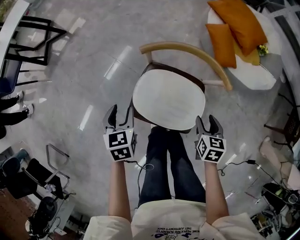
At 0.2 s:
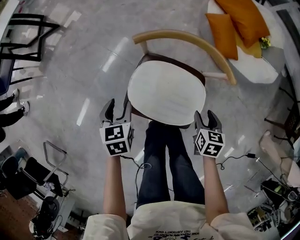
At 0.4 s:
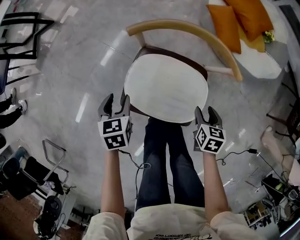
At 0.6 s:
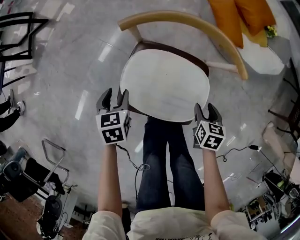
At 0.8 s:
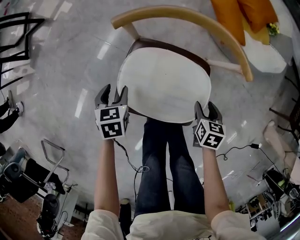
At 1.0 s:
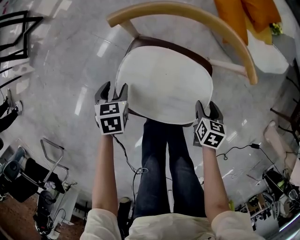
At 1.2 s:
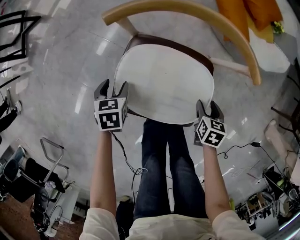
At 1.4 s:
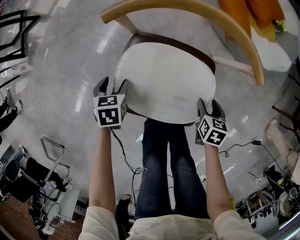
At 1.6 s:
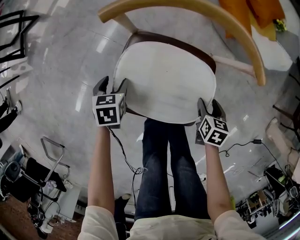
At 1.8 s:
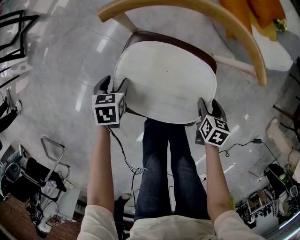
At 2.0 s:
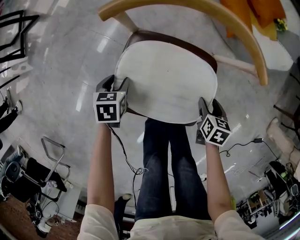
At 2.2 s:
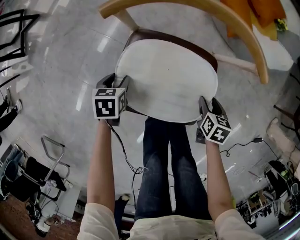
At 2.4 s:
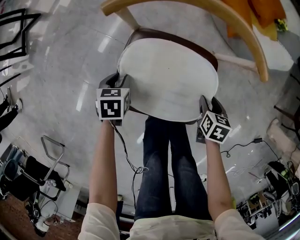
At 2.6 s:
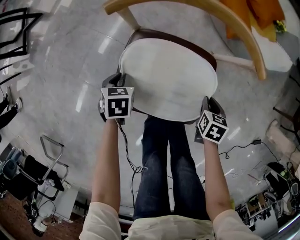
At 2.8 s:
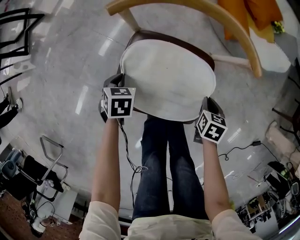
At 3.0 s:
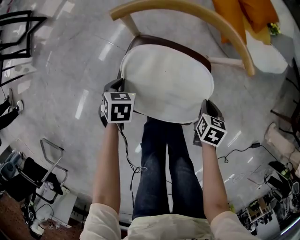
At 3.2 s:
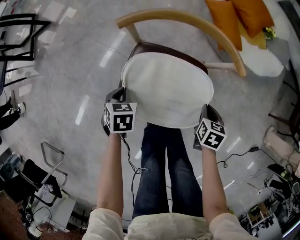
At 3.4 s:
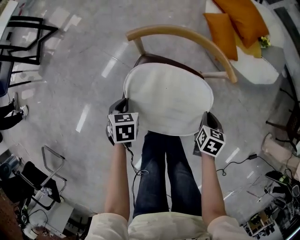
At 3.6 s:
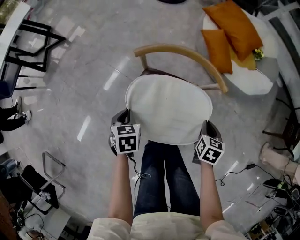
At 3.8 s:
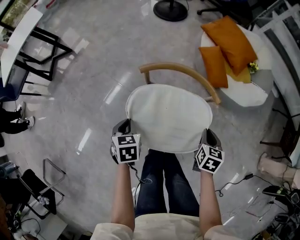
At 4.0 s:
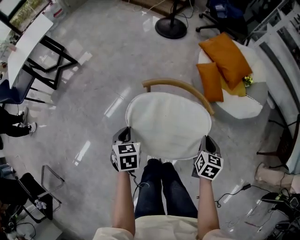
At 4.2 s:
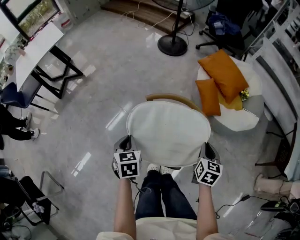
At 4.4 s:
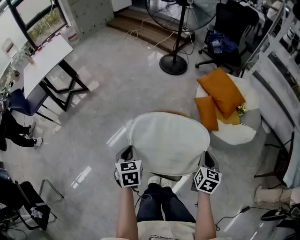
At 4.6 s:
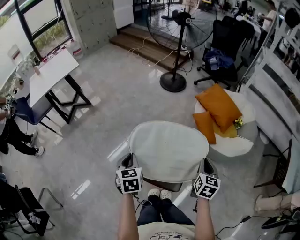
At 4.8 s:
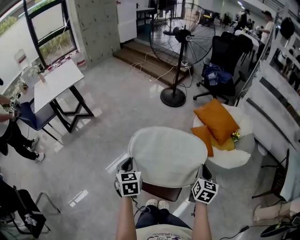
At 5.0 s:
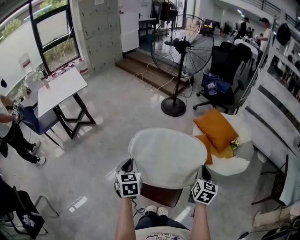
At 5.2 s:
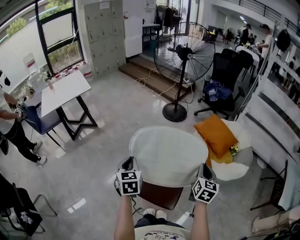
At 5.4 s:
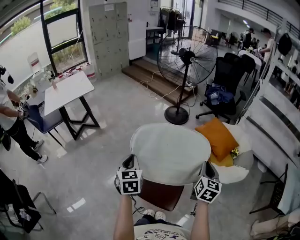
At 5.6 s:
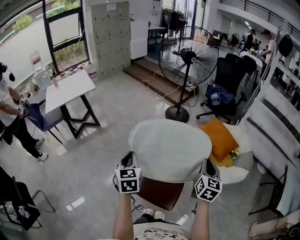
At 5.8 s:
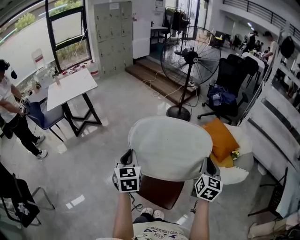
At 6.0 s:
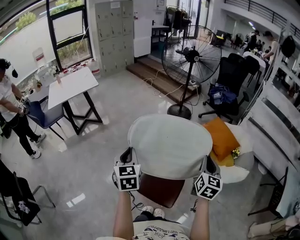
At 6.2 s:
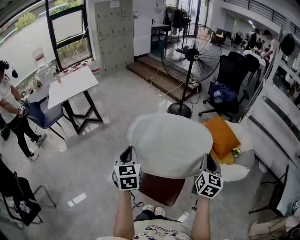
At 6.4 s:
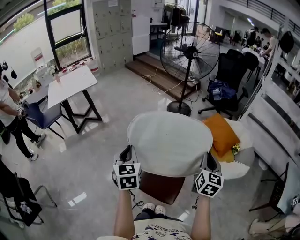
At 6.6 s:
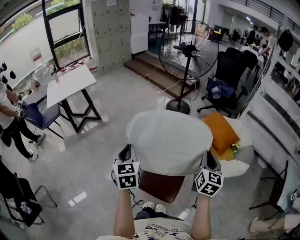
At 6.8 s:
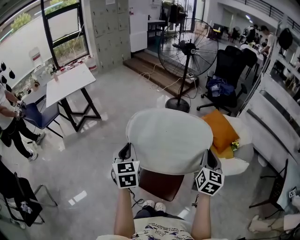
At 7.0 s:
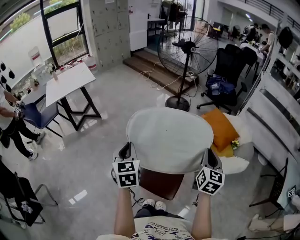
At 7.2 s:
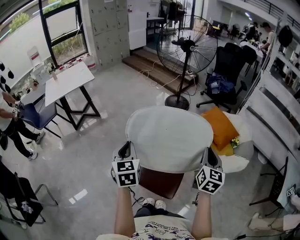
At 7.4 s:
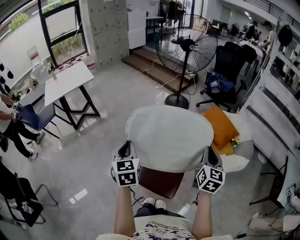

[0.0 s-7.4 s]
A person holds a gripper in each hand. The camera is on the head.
0.0 to 1.4 s: The grippers both shift downward by about 25 cm.
1.4 to 3.0 s: The right gripper closes its fingers. The left gripper closes up.
3.0 to 4.4 s: The two grippers go some 50 cm upward. The right gripper rotates about 30 degrees. Meanwhile the left gripper swivels approximately 30 degrees.
4.4 to 6.0 s: The grippers both shift upward by approximately 25 cm. The left gripper rotates approximately 30 degrees. Meanwhile the right gripper swivels approximately 30 degrees.
6.0 to 7.4 s: The grippers stay close to where they were, moving slightly.

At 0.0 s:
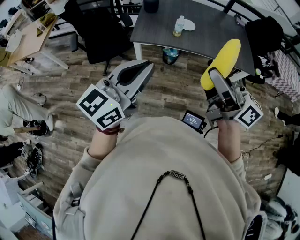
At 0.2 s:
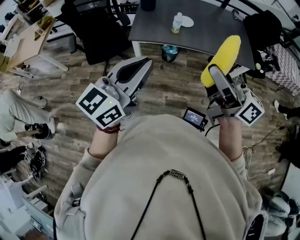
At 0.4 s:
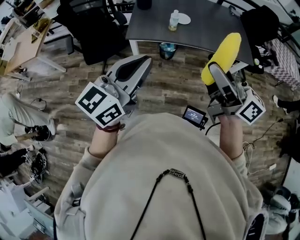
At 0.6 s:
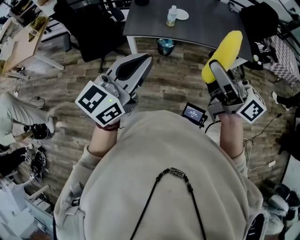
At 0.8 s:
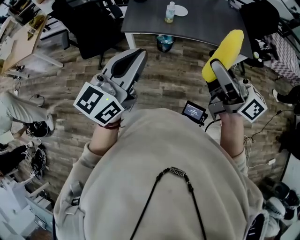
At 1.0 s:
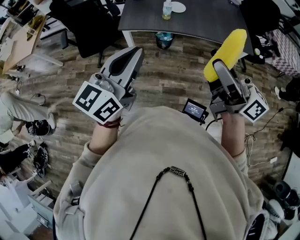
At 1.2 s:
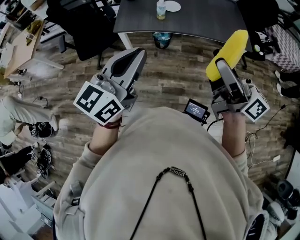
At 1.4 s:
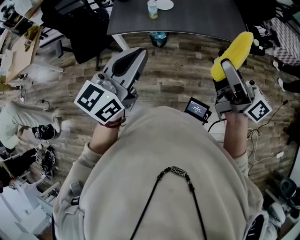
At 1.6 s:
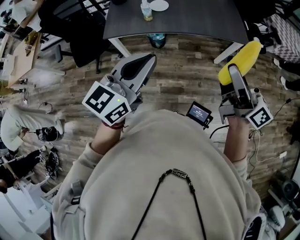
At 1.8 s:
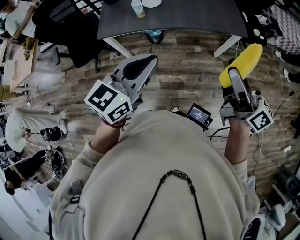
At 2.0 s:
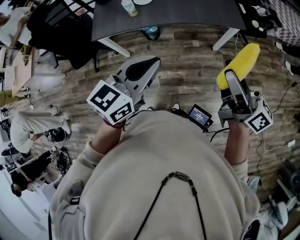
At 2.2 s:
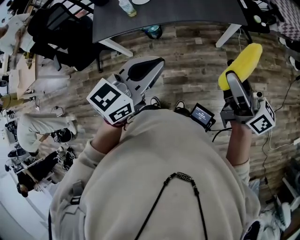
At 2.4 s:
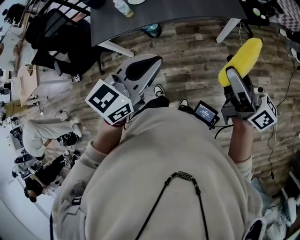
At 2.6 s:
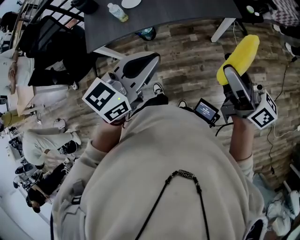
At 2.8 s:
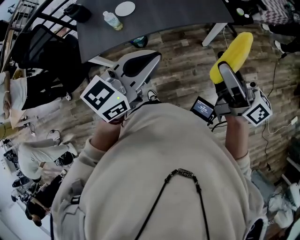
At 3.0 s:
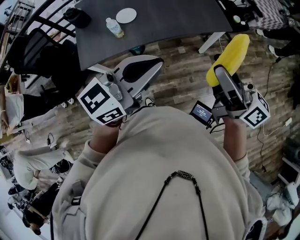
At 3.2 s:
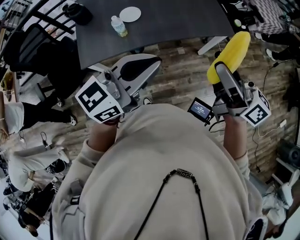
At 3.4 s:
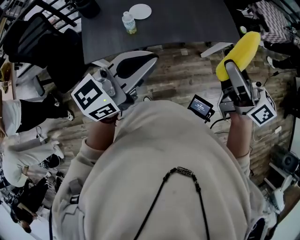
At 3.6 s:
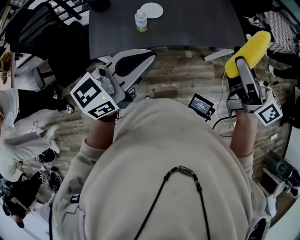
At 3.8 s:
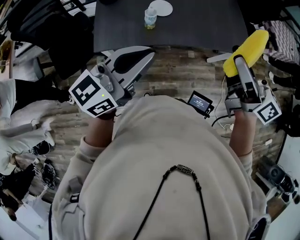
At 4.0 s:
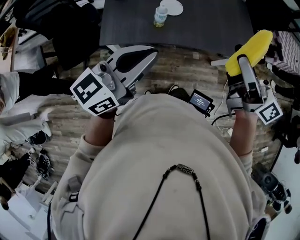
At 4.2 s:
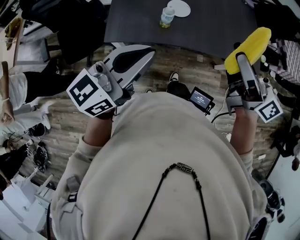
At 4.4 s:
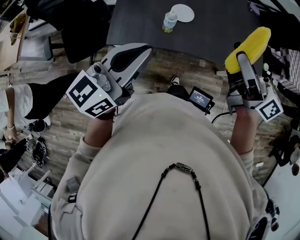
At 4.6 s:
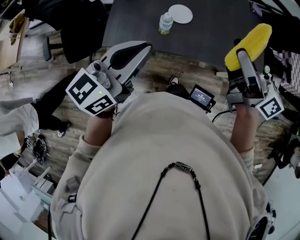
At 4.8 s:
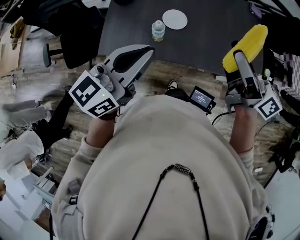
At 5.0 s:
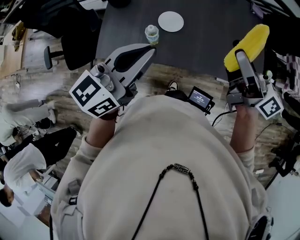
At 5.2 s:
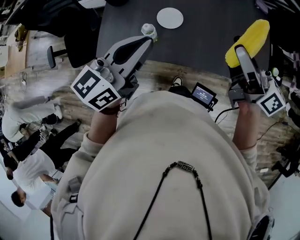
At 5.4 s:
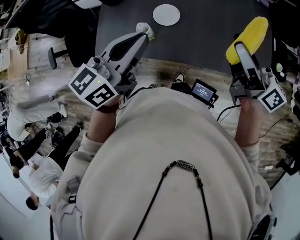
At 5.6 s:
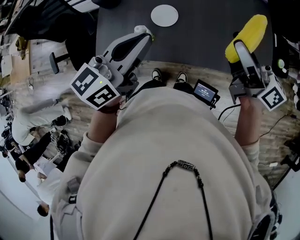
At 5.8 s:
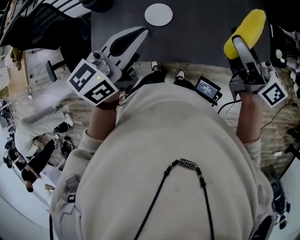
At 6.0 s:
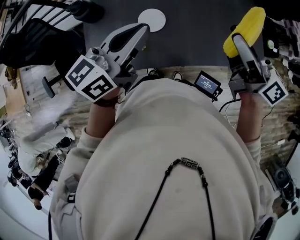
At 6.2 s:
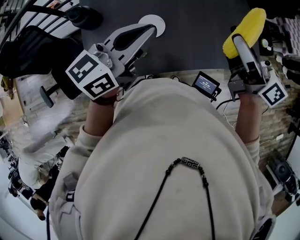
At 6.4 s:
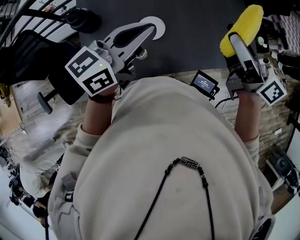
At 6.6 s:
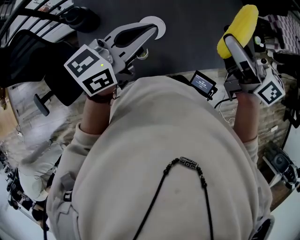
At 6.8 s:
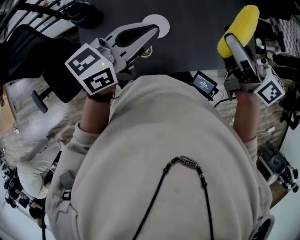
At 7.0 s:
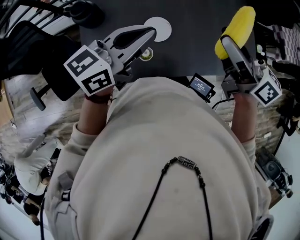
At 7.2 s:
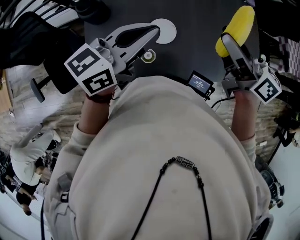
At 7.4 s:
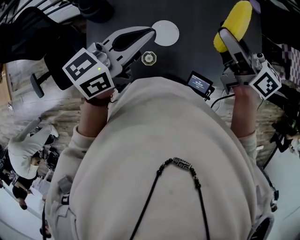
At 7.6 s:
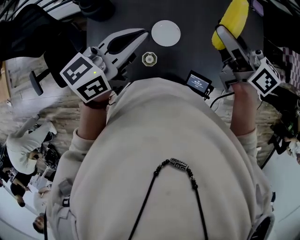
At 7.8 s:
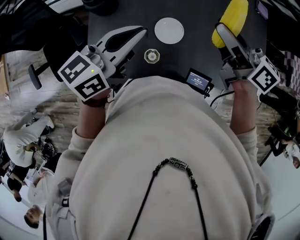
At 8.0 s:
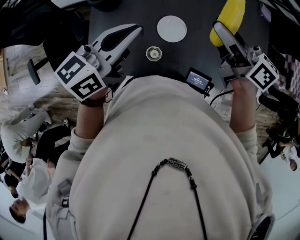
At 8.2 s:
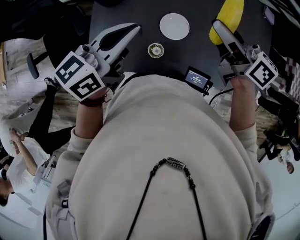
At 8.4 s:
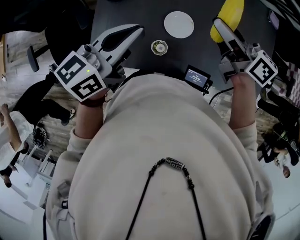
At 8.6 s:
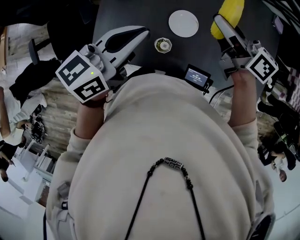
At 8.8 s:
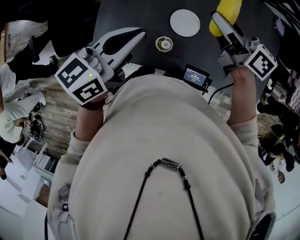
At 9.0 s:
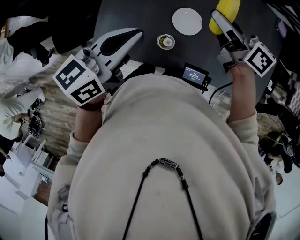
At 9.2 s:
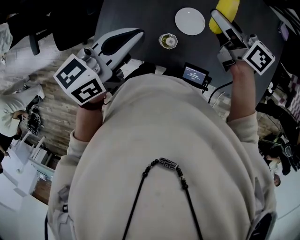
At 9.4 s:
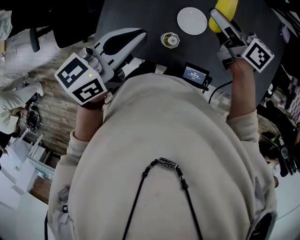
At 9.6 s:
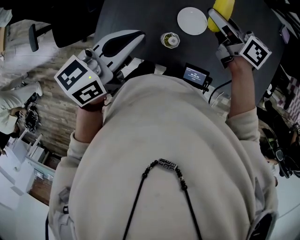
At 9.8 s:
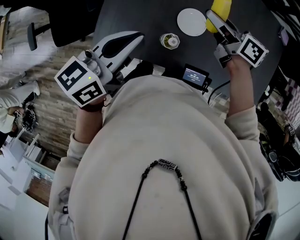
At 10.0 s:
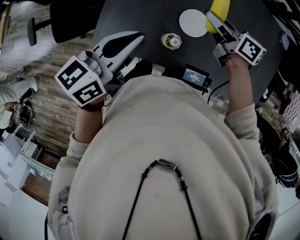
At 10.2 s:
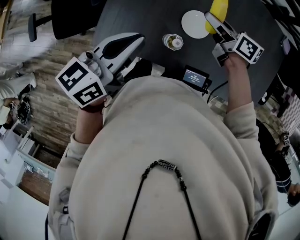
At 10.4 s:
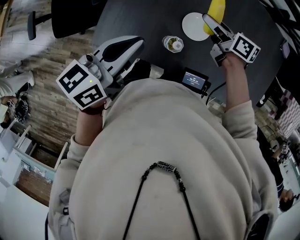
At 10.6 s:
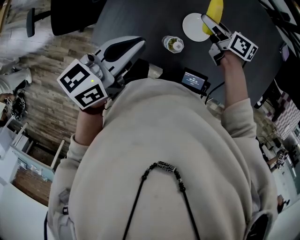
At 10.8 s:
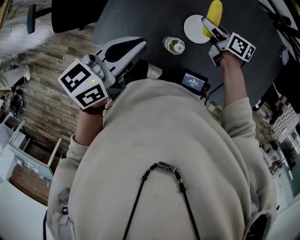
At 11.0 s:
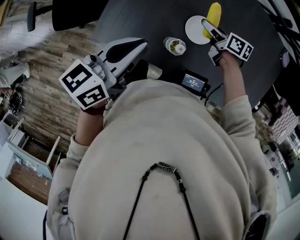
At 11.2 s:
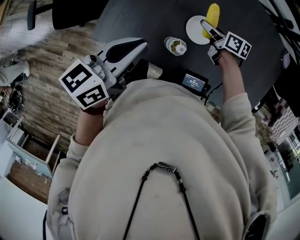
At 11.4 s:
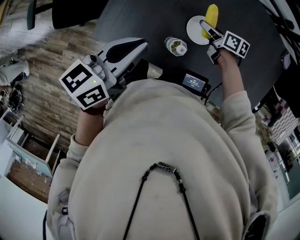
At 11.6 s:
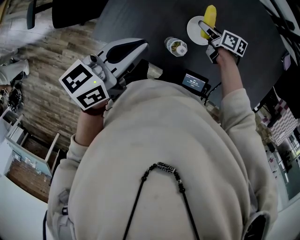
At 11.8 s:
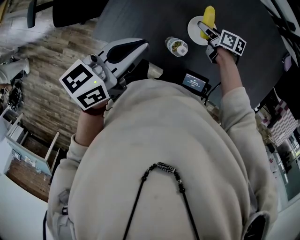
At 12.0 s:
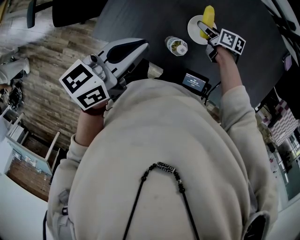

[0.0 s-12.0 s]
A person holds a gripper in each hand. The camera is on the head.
0.0 to 1.6 s: The two grippers go about 25 cm to the right.
1.6 to 3.0 s: The right gripper heads forward, covering roughly 5 cm, and moves some 10 cm to the right and comes back; the left gripper moves forward and to the right, about 15 cm, and swivels about 30 degrees.
3.0 to 4.4 s: The right gripper heads to the left and forward, covering roughly 30 cm, and swivels approximately 20 degrees. The left gripper heads to the left, covering some 25 cm, and changes its angle by some 30 degrees.
4.4 to 6.0 s: The left gripper moves forward and backward over about 10 cm, changing direction 2 times.
6.0 to 7.6 s: The left gripper is displaced downward by approximately 5 cm, and moves roughly 10 cm to the right and comes back. The right gripper is displaced forward by about 5 cm.
7.6 to 9.0 s: The left gripper shifts about 10 cm to the left and backward, while the right gripper travels downward and to the left by roughly 10 cm.
9.0 to 10.4 s: The left gripper ends up some 5 cm from where it was; the right gripper shifts roughly 15 cm downward.
10.4 to 12.0 s: The right gripper moves downward, about 15 cm.

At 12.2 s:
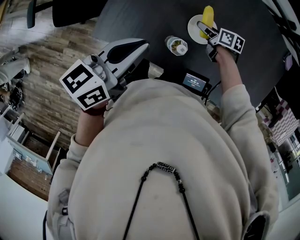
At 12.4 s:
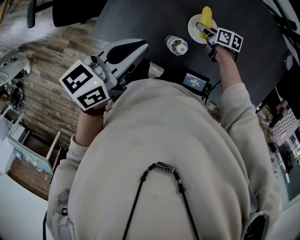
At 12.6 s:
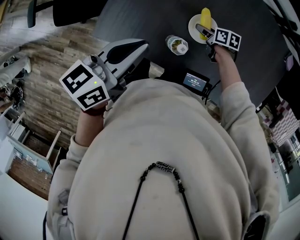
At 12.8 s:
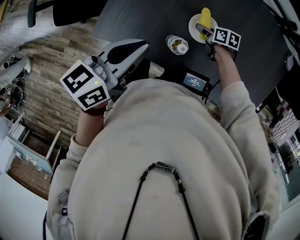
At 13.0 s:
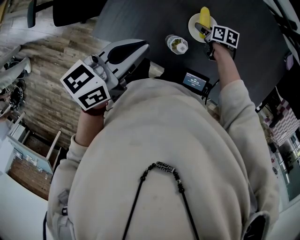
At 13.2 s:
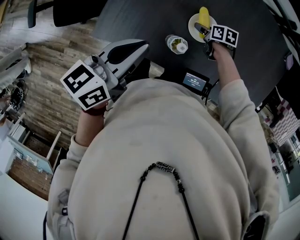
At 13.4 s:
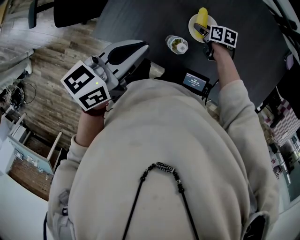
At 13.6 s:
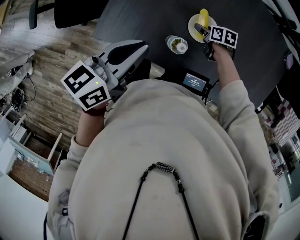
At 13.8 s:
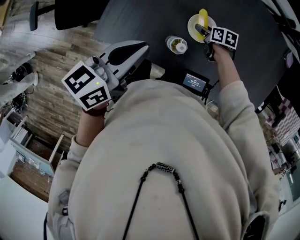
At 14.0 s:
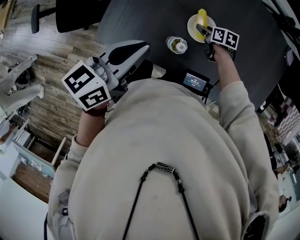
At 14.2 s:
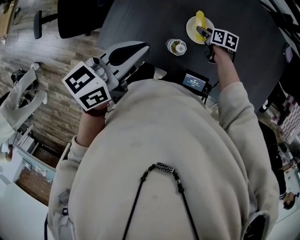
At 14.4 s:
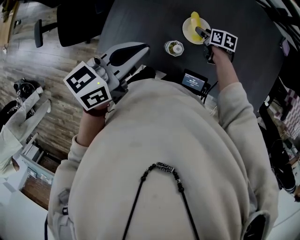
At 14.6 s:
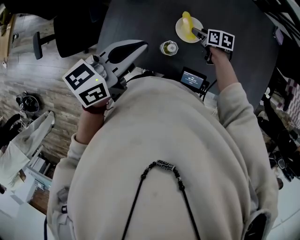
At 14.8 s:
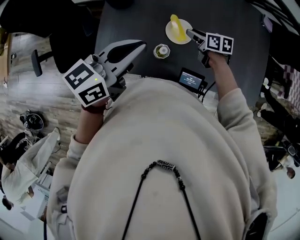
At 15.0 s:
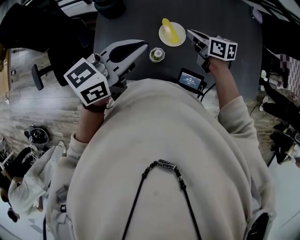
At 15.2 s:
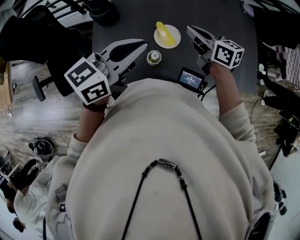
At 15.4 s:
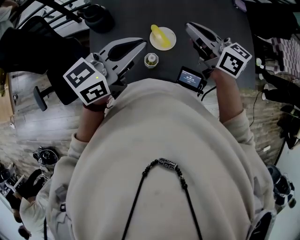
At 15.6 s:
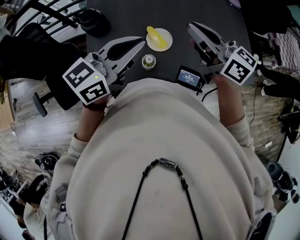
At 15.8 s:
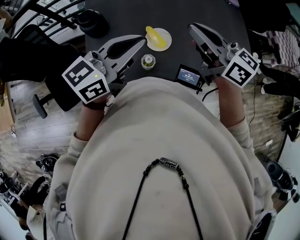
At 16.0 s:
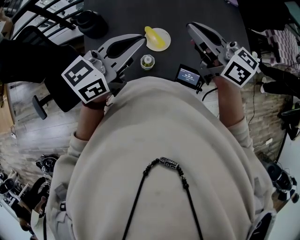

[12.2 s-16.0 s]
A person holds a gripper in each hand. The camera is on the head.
12.2 to 13.4 s: The grippers stay close to where they were, moving slightly.
13.4 to 14.8 s: The right gripper shifts approximately 15 cm upward, and swivels about 20 degrees, while the left gripper travels upward and to the right by some 10 cm, and changes its angle by approximately 20 degrees.
14.8 to 16.0 s: The left gripper goes some 5 cm upward, and rotates roughly 20 degrees, while the right gripper is displaced upward by roughly 30 cm, angles its fingers upward, by approximately 40 degrees, and closes up.
